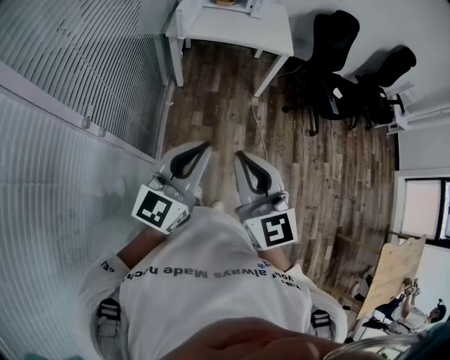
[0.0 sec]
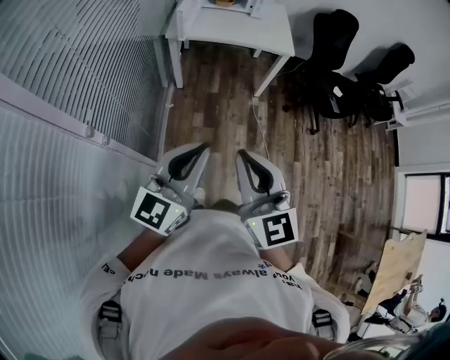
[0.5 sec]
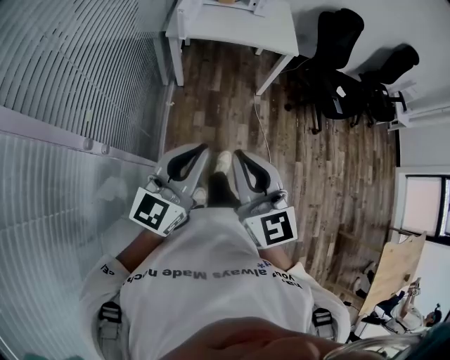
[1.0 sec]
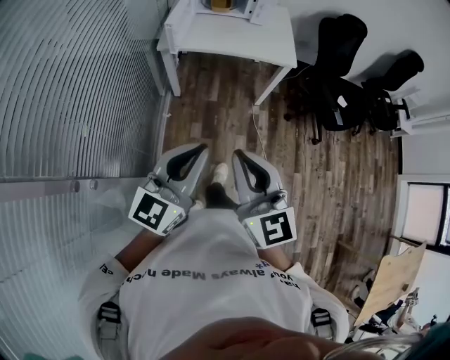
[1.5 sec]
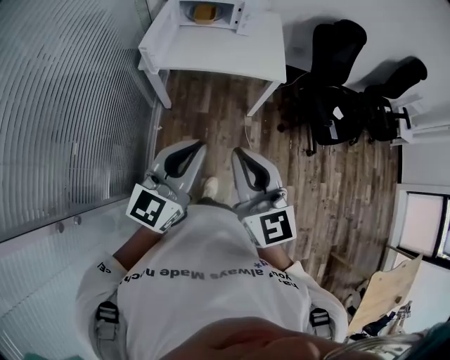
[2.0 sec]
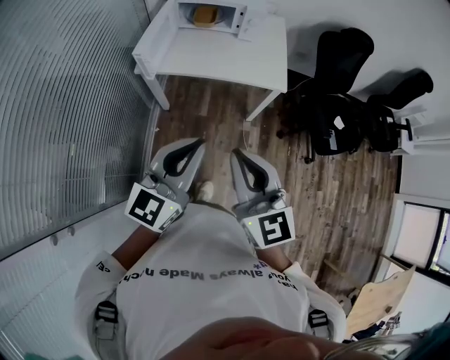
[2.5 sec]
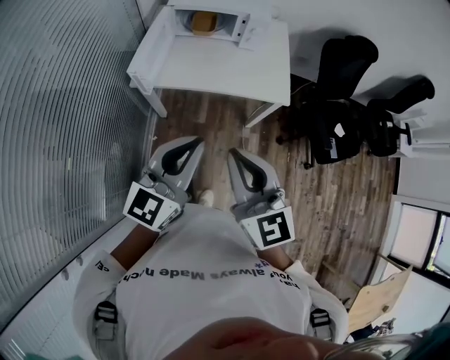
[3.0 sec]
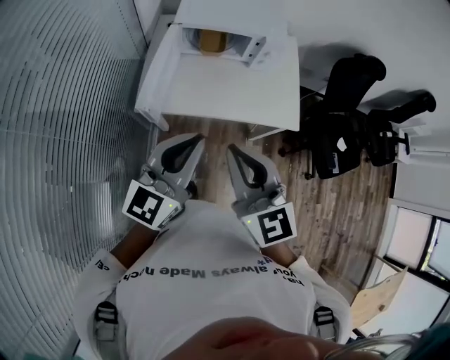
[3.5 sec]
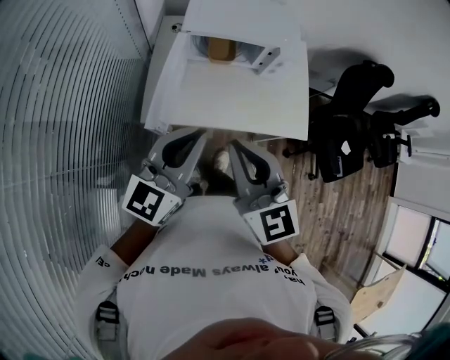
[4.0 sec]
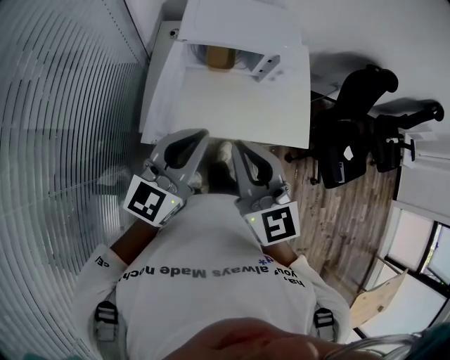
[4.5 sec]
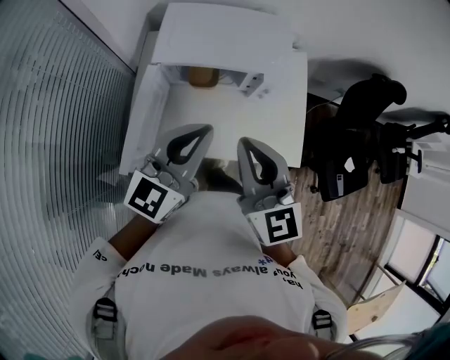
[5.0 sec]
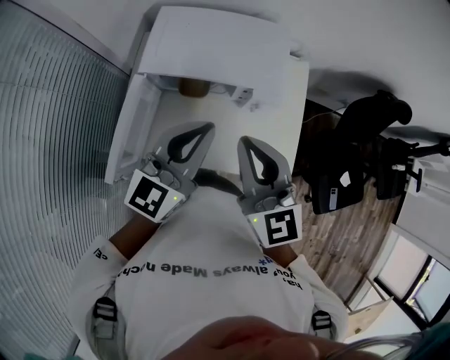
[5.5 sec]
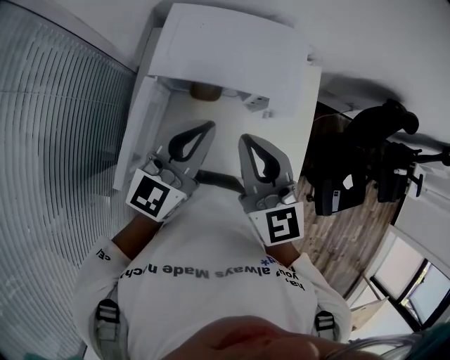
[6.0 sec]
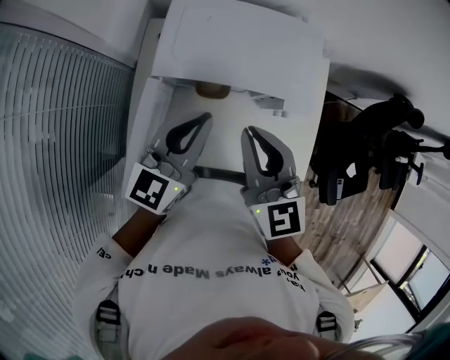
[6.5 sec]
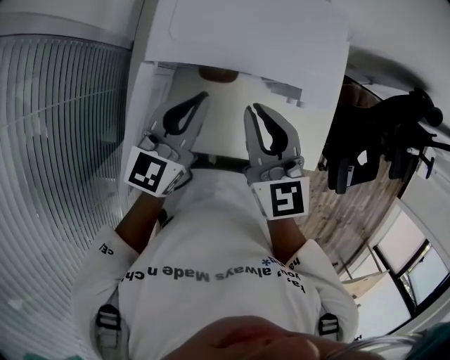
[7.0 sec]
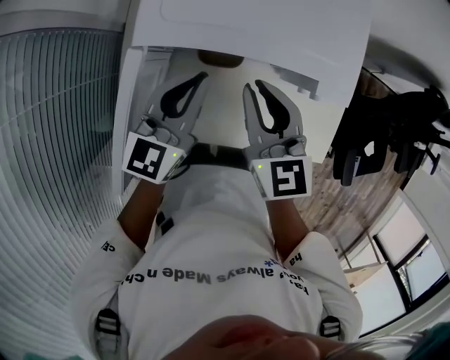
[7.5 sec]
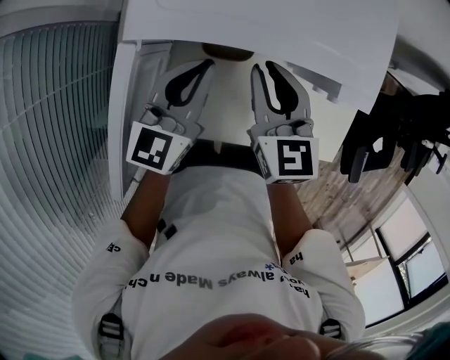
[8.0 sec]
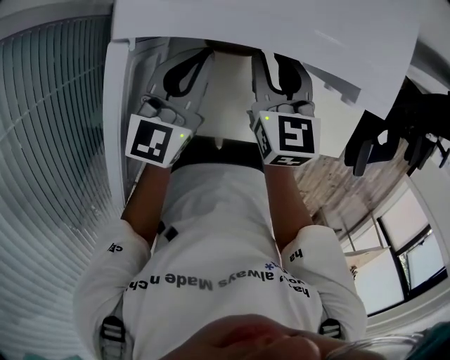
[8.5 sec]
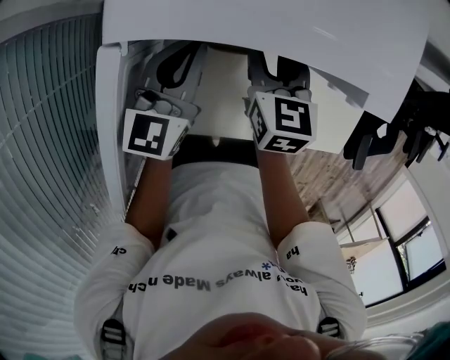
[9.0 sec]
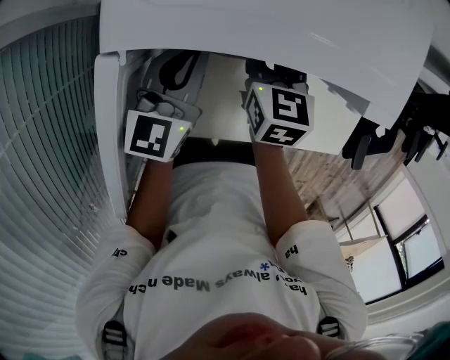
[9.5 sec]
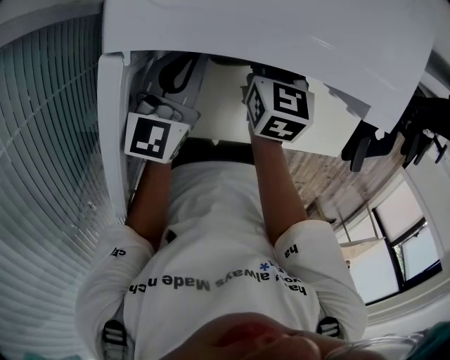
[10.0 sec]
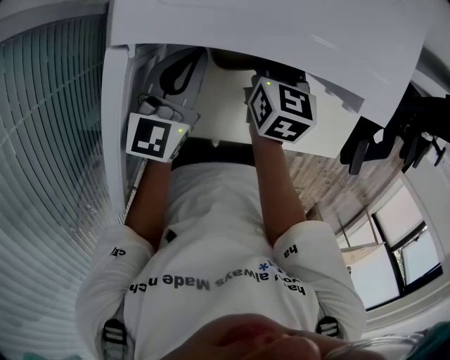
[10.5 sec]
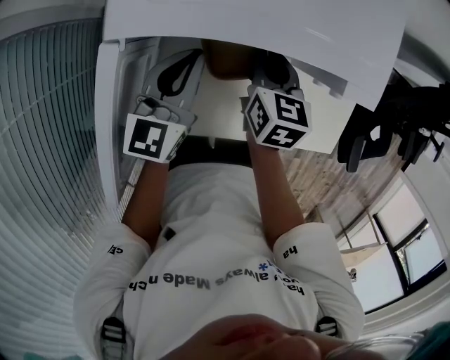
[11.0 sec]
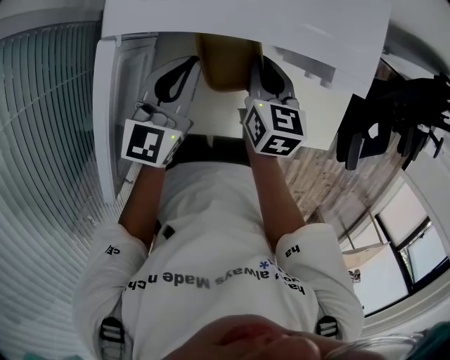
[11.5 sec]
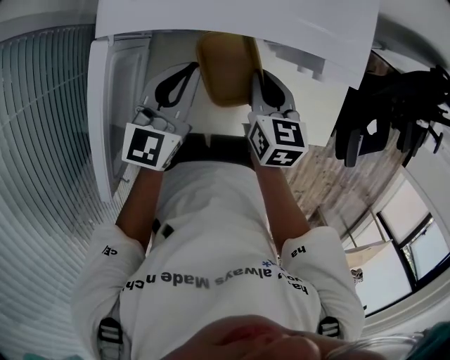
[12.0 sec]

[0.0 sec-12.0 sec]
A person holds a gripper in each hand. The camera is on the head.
0.0 sec to 2.0 sec: Both grippers move forward, about 35 cm.
2.0 sec to 4.0 sec: The two grippers travel together, forward, approximately 50 cm.
4.0 sec to 6.0 sec: Both grippers travel together forward and to the right, about 30 cm.
6.0 sec to 8.0 sec: The grippers both shift downward and forward by about 30 cm. The right gripper rotates some 20 degrees.
8.0 sec to 10.0 sec: The right gripper heads downward and forward, covering approximately 15 cm, and changes its angle by some 20 degrees; the left gripper goes approximately 10 cm downward.
10.0 sec to 12.0 sec: The left gripper shifts about 10 cm to the right and backward. The right gripper travels backward and to the right by roughly 15 cm.

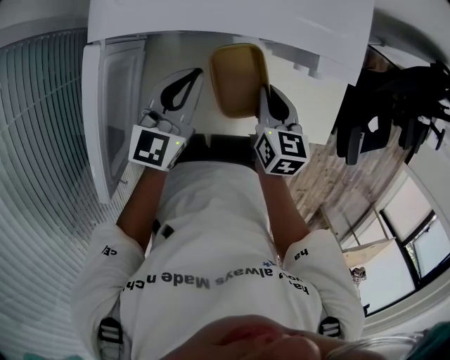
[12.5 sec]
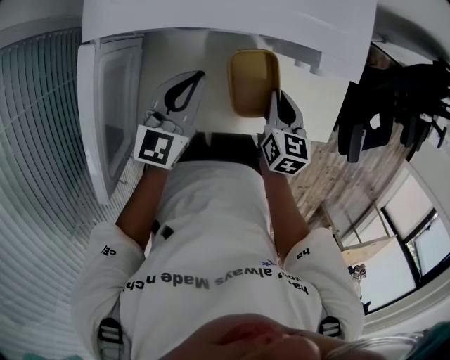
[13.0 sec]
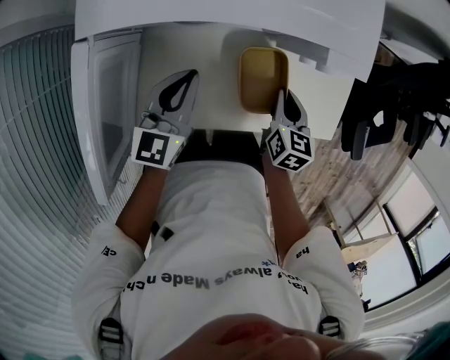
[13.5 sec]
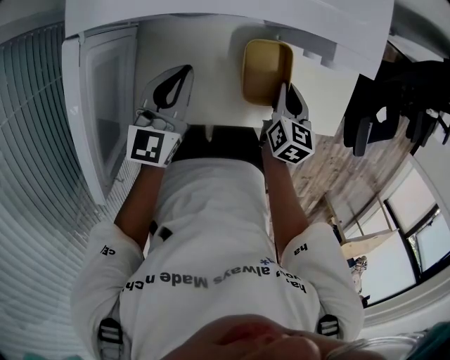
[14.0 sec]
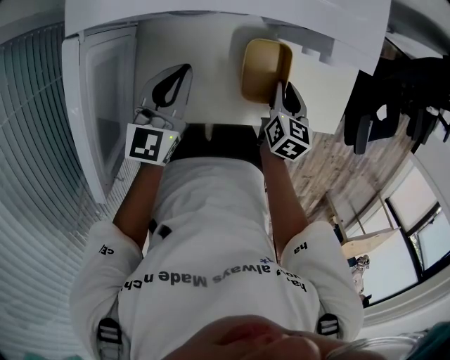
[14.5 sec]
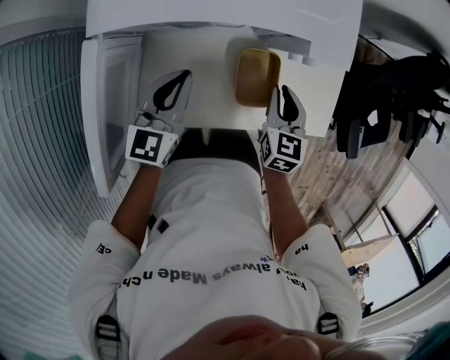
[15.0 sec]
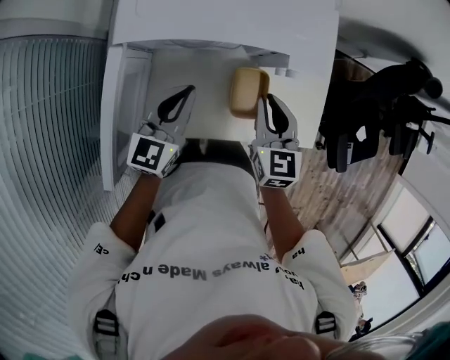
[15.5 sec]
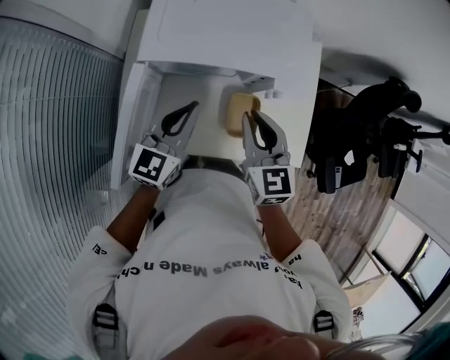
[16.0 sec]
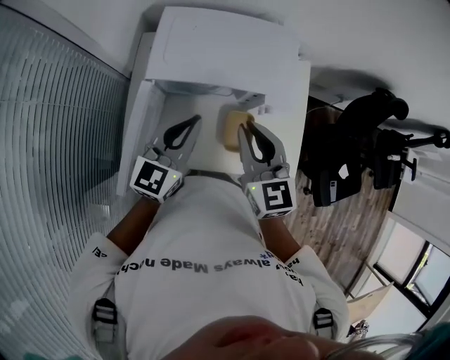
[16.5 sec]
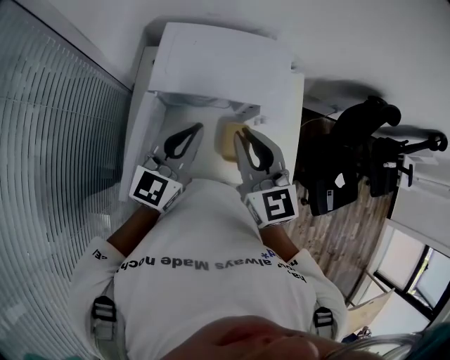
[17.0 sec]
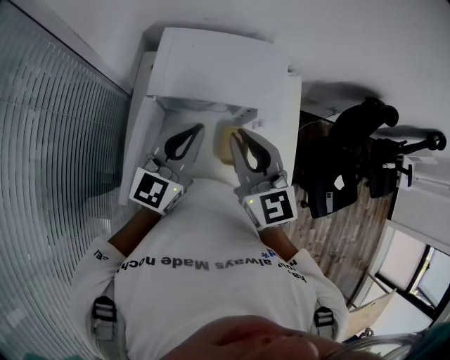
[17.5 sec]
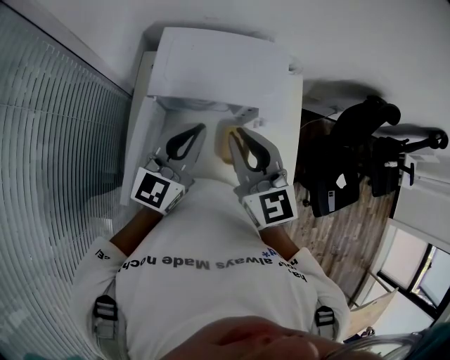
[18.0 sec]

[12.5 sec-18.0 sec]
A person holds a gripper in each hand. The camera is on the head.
12.5 sec to 14.5 sec: The left gripper heads downward, covering roughly 5 cm. Meanwhile the right gripper travels downward and to the right by approximately 10 cm.
14.5 sec to 16.0 sec: The left gripper is displaced upward by about 20 cm, while the right gripper travels upward by roughly 35 cm, and turns by about 40 degrees.
16.0 sec to 18.0 sec: Both grippers travel together upward, some 15 cm.

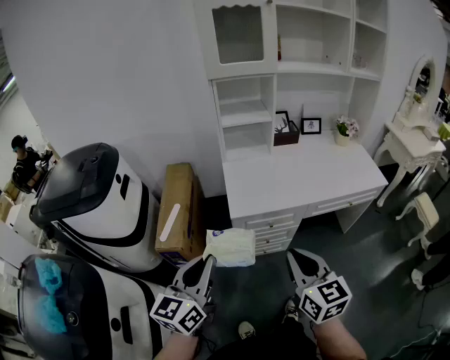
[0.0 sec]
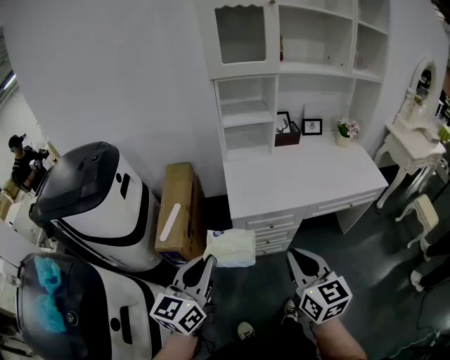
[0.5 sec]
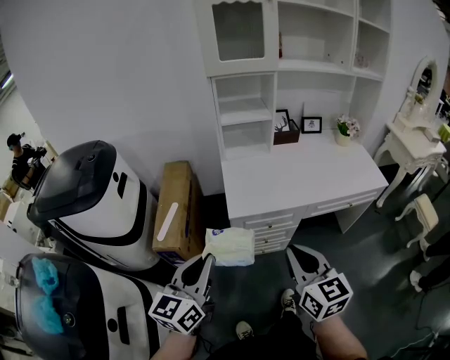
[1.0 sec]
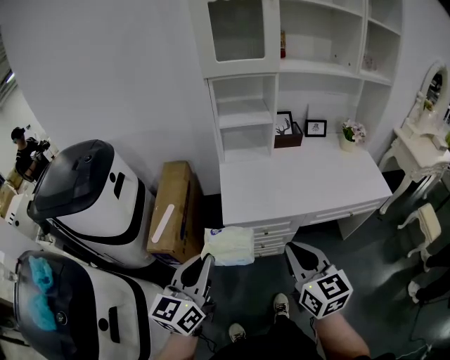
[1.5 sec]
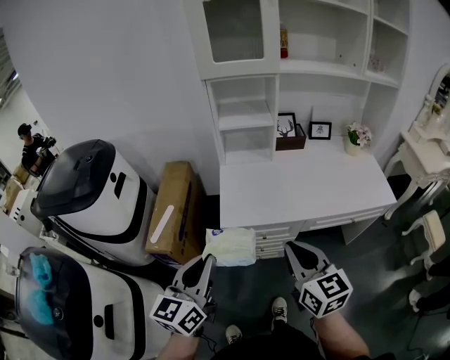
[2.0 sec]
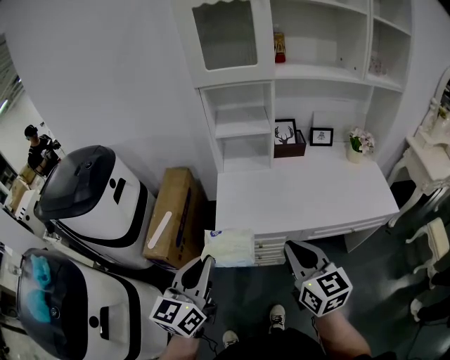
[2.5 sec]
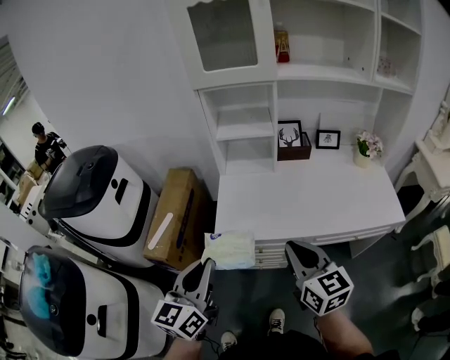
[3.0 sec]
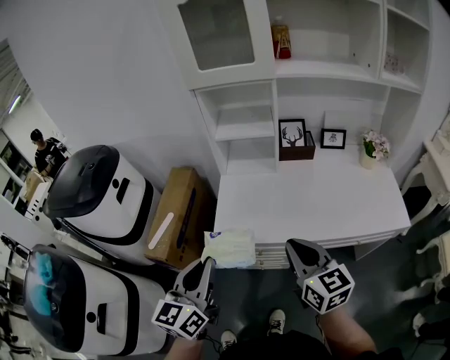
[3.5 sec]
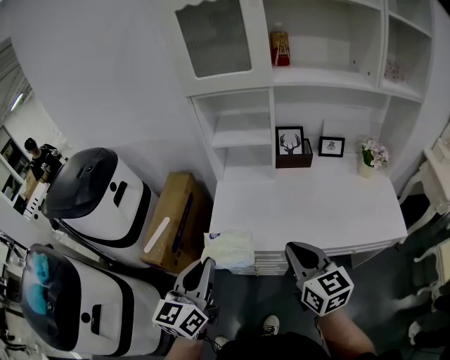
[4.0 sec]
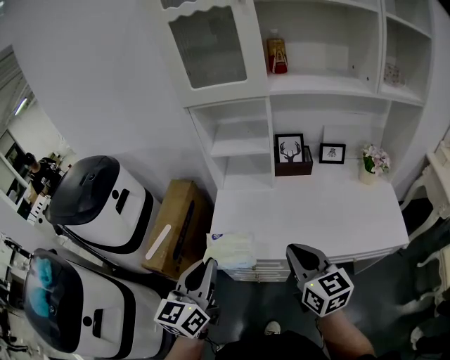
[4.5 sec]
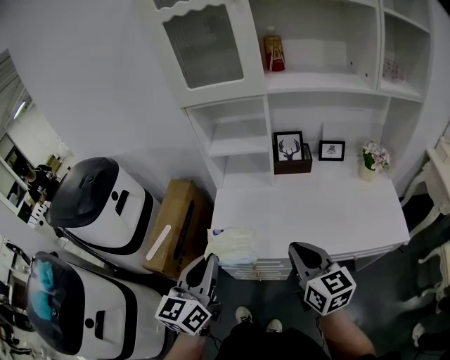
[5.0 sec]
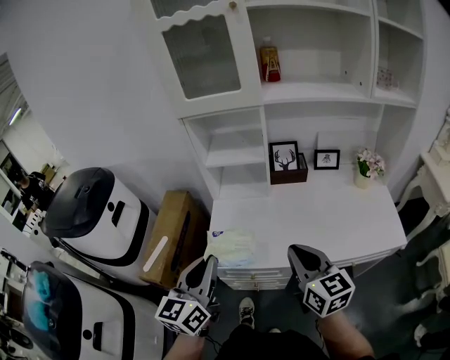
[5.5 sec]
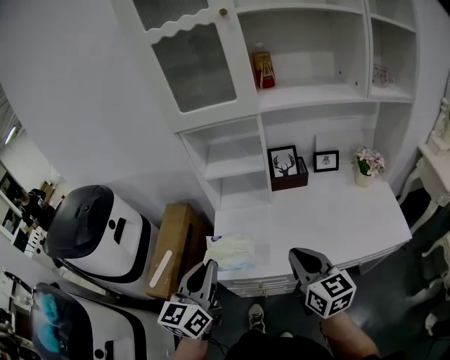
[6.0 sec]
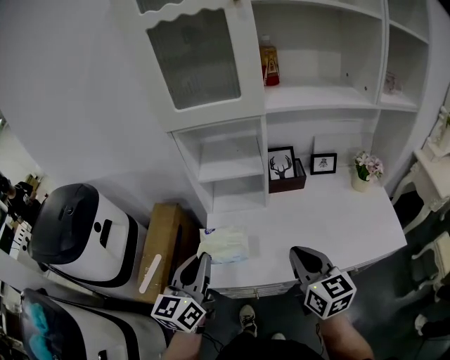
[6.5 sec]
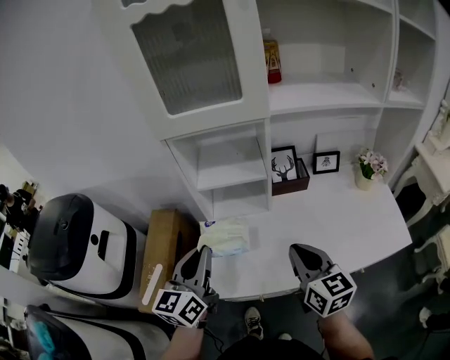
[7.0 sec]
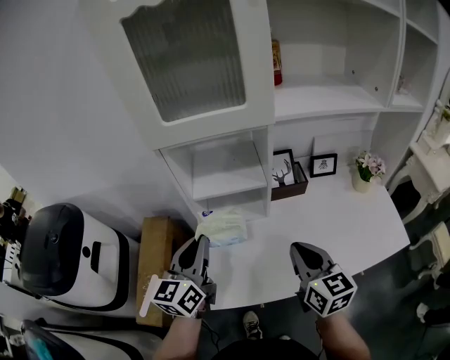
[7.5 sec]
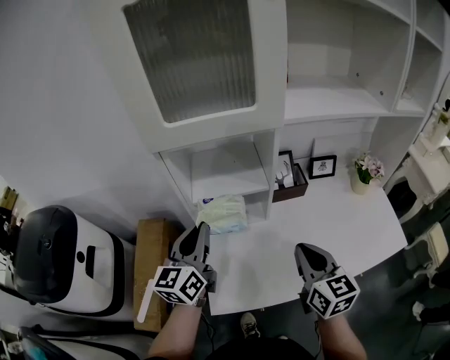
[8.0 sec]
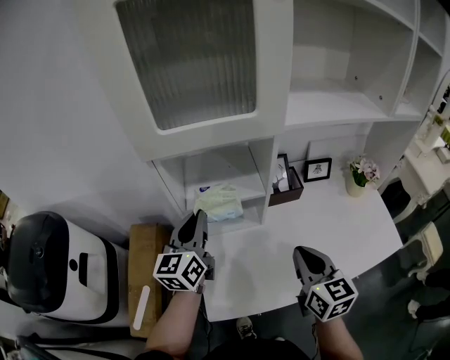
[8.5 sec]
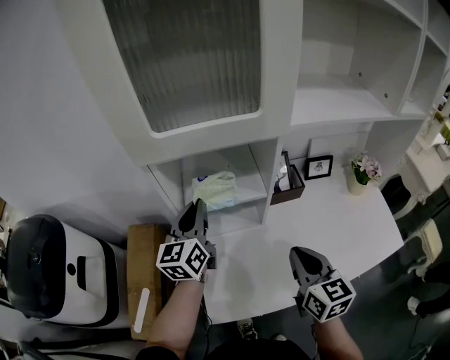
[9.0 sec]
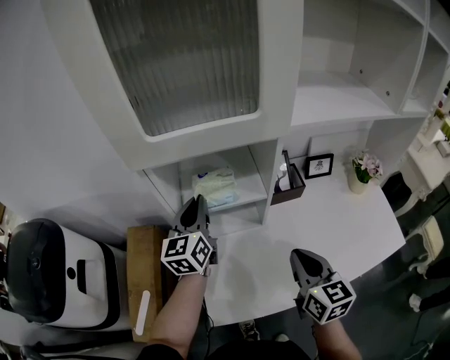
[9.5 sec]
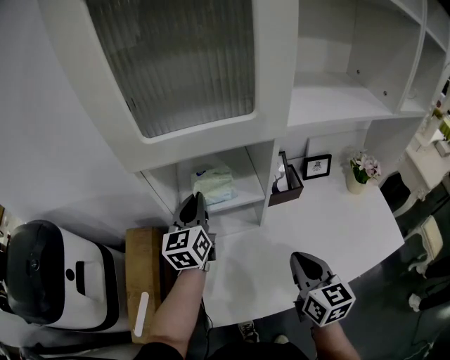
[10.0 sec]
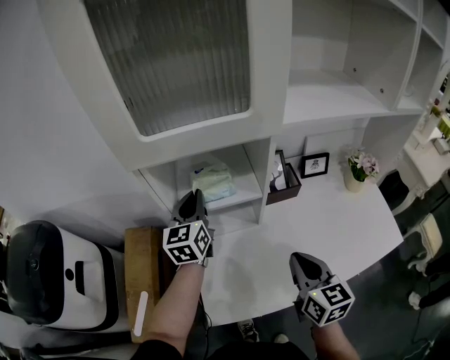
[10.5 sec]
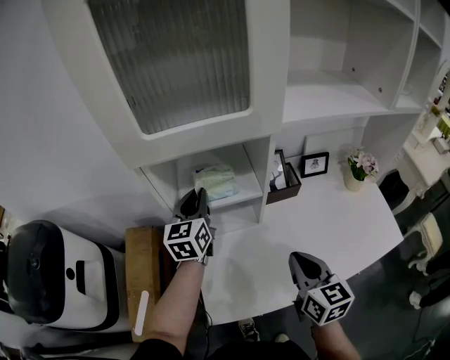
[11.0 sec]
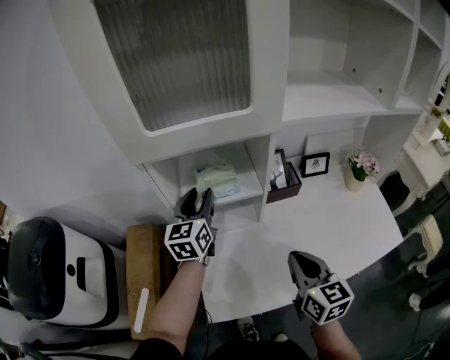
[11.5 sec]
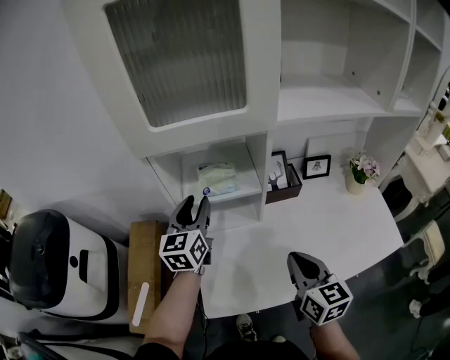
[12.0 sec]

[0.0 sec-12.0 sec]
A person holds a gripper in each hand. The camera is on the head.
0.0 sec to 2.0 sec: The right gripper goes roughly 10 cm forward and to the right; the left gripper travels to the right and forward by about 10 cm.
2.0 sec to 4.0 sec: The left gripper shifts some 15 cm to the right and forward. The right gripper is displaced forward and to the right by some 15 cm.
4.0 sec to 6.0 sec: The grippers both shift forward by about 10 cm.
6.0 sec to 8.0 sec: The right gripper shifts some 15 cm forward. Meanwhile the left gripper moves forward, roughly 25 cm.
8.0 sec to 10.0 sec: The left gripper heads forward, covering roughly 15 cm.
10.0 sec to 12.0 sec: The left gripper moves backward, approximately 5 cm, and opens up.
